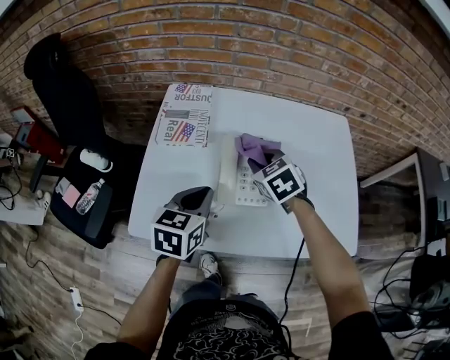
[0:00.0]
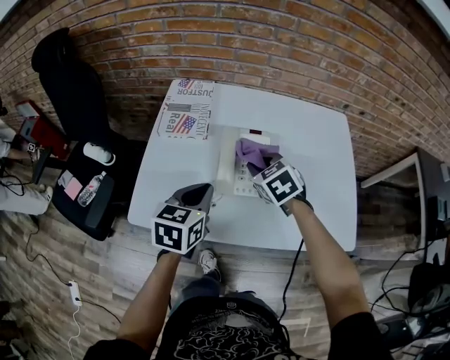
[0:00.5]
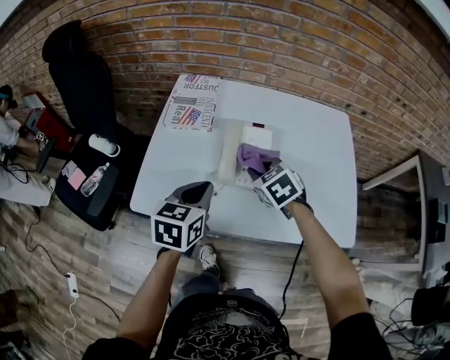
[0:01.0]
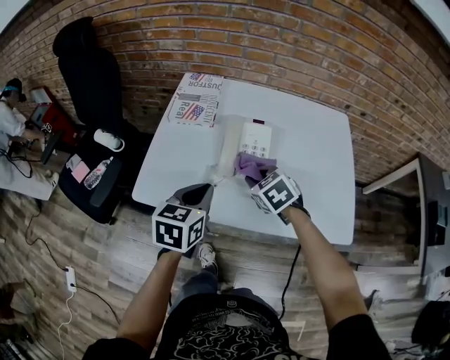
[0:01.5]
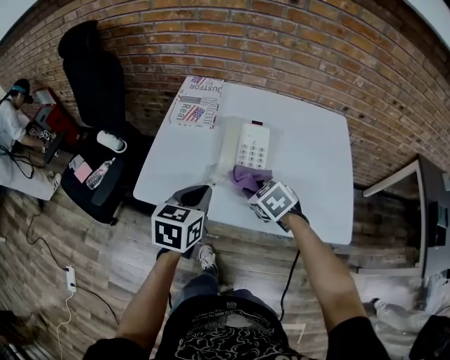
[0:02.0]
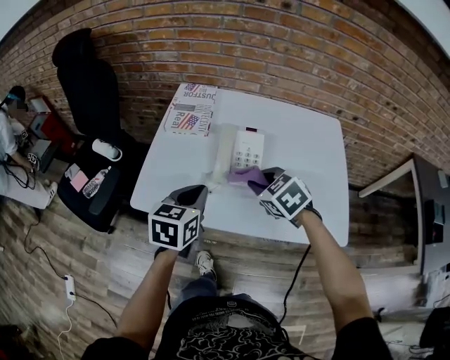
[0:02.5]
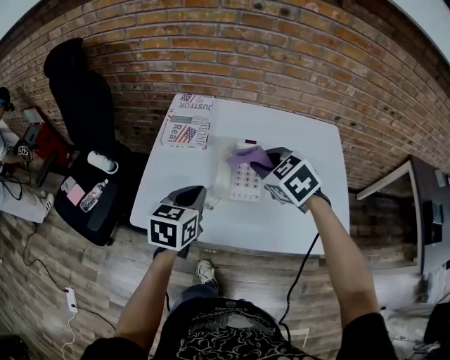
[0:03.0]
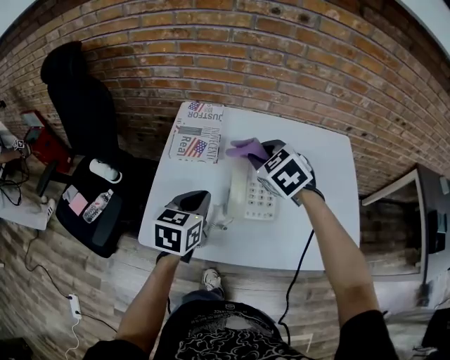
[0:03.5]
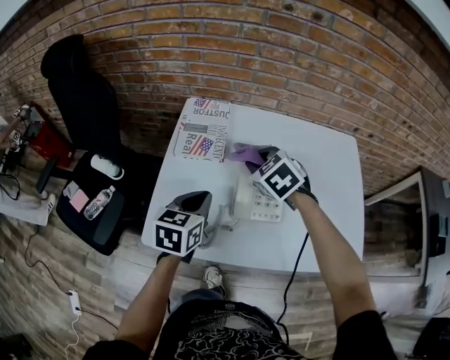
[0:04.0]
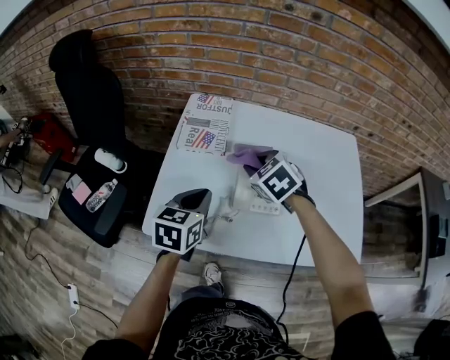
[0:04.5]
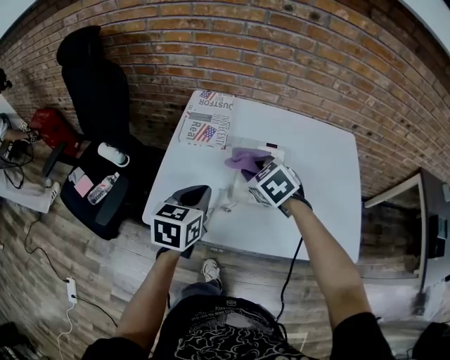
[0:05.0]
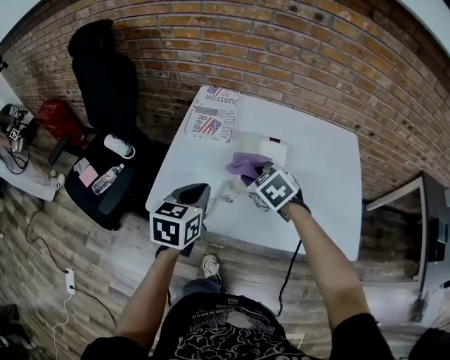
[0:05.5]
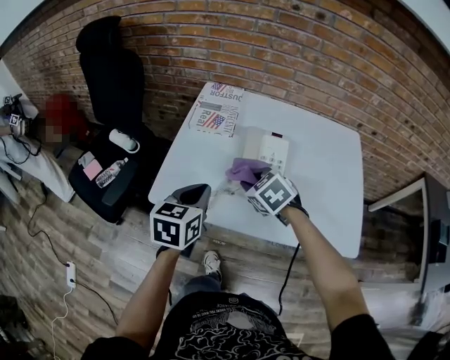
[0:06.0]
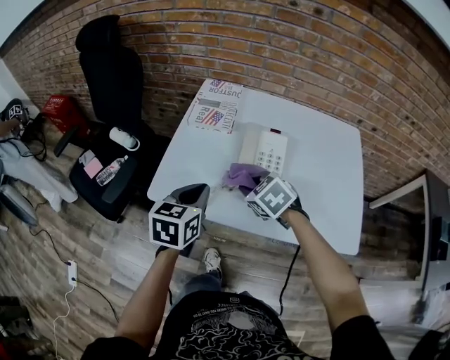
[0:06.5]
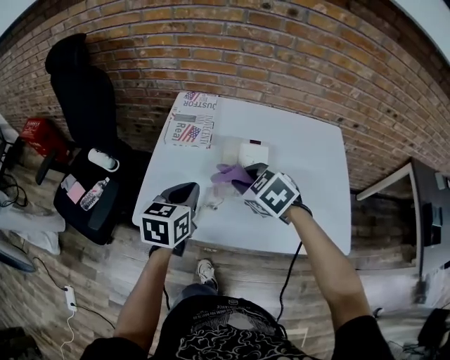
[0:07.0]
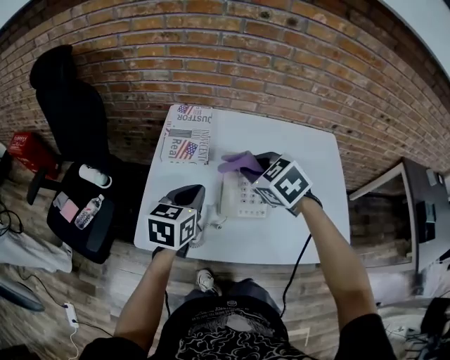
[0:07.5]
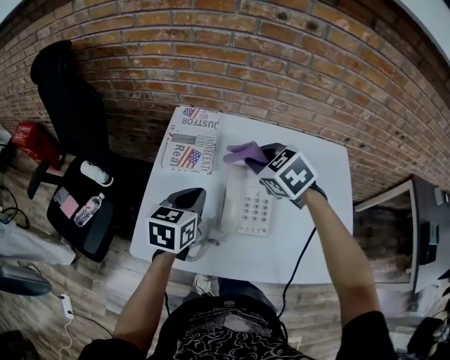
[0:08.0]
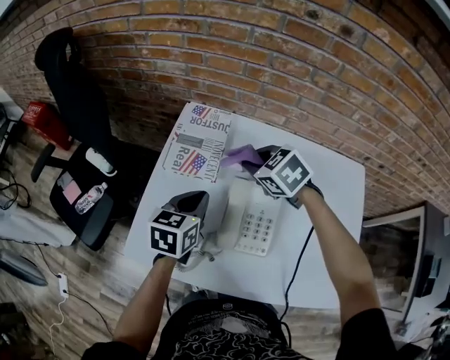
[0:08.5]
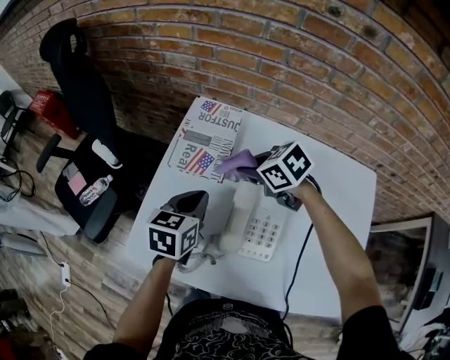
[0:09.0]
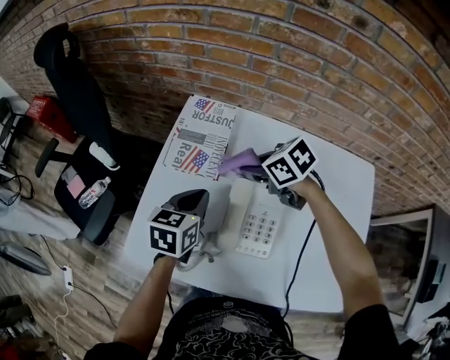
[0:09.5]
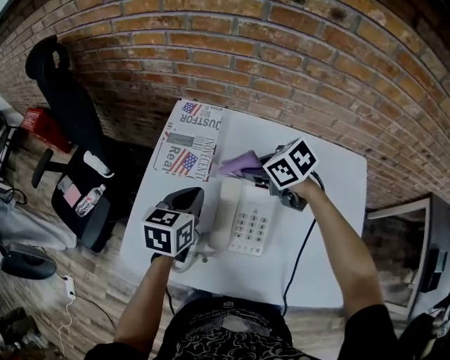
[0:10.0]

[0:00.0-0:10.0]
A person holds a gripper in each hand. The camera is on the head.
0:00.0 to 0:02.0: The right gripper is displaced backward by roughly 15 cm; the left gripper travels backward by about 10 cm.
0:02.0 to 0:04.0: The left gripper travels forward by roughly 15 cm, while the right gripper shifts approximately 20 cm forward and upward.
0:04.0 to 0:06.0: The two grippers go some 15 cm backward.
0:06.0 to 0:08.0: The left gripper travels forward by about 15 cm, while the right gripper goes some 20 cm forward and upward.
0:08.0 to 0:10.0: The left gripper shifts by roughly 5 cm, while the right gripper shifts roughly 10 cm downward, and changes its angle by some 30 degrees.

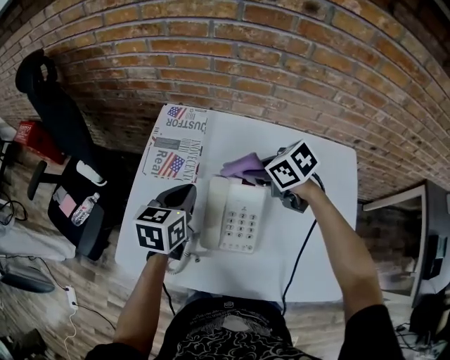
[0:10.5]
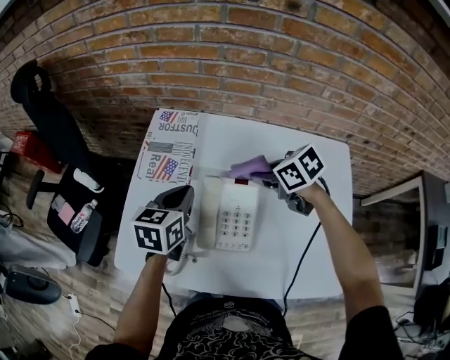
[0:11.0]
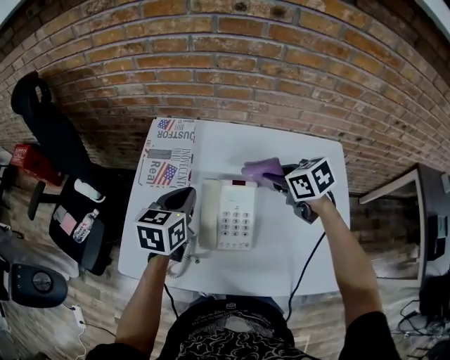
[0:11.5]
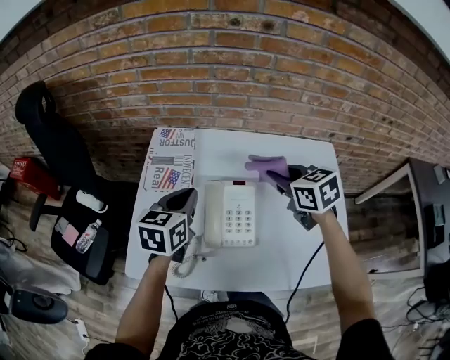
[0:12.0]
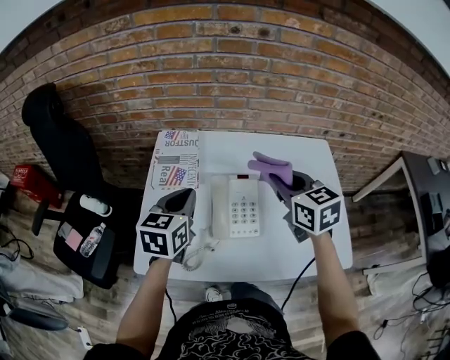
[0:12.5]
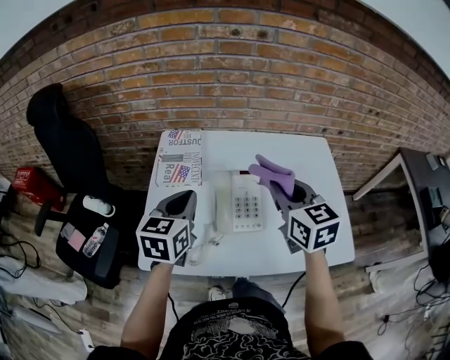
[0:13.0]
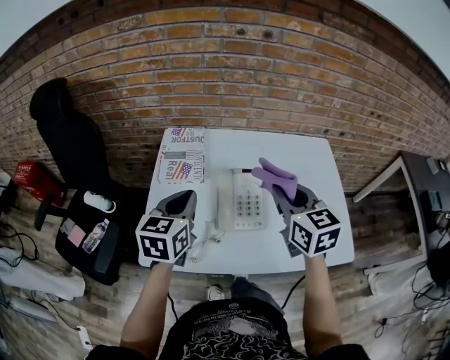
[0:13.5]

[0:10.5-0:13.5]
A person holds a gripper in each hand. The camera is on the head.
0:10.5 to 0:12.0: The left gripper goes some 5 cm upward; the right gripper travels upward, to the right and backward by roughly 15 cm, and swivels roughly 30 degrees.
0:12.0 to 0:13.5: The left gripper goes roughly 10 cm backward. The right gripper moves backward and upward, some 15 cm, and turns by some 30 degrees.

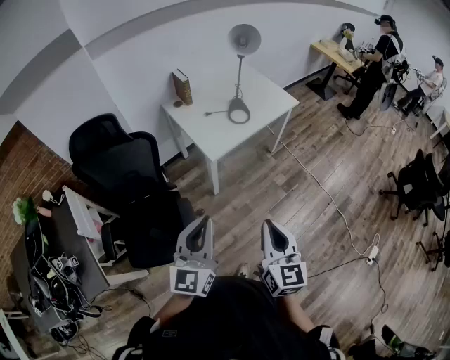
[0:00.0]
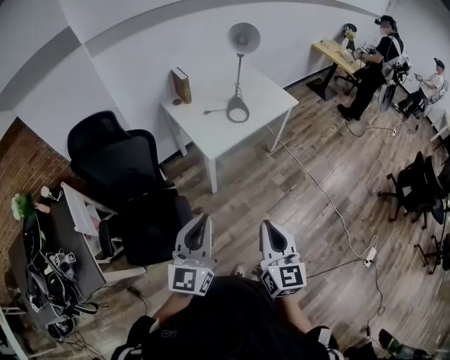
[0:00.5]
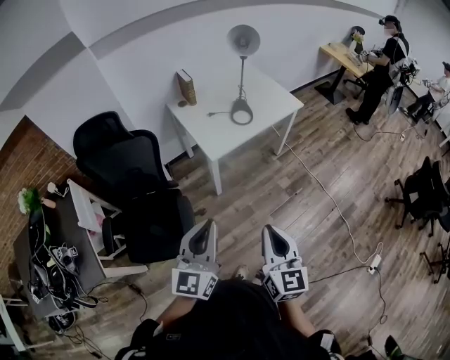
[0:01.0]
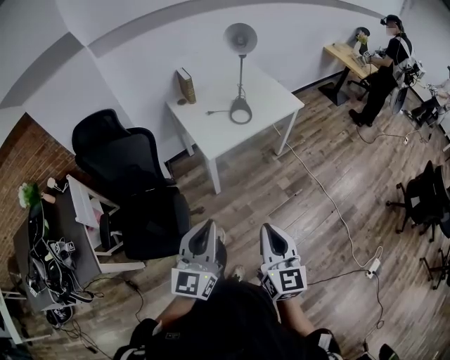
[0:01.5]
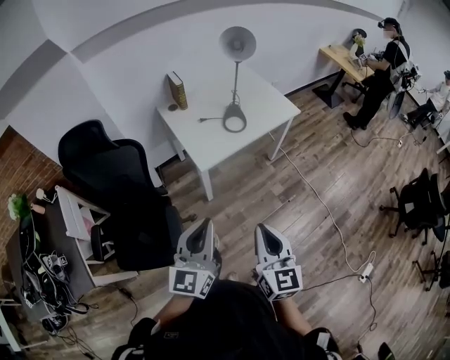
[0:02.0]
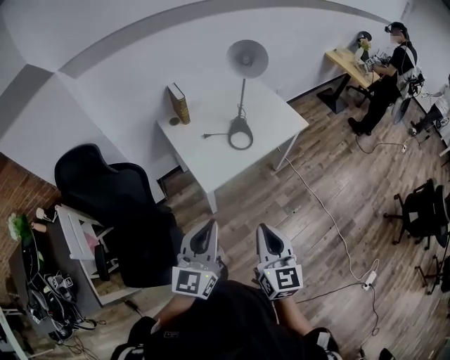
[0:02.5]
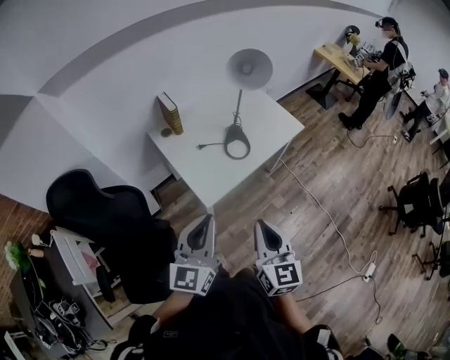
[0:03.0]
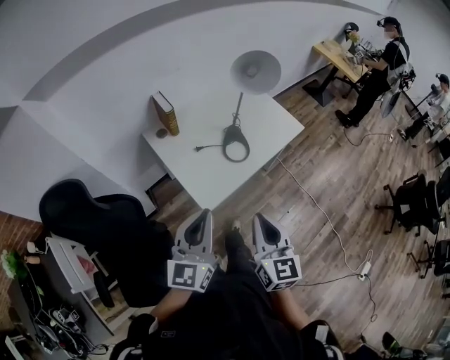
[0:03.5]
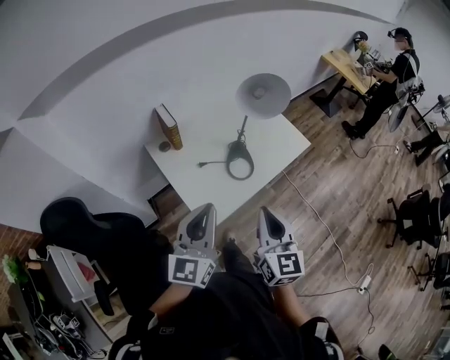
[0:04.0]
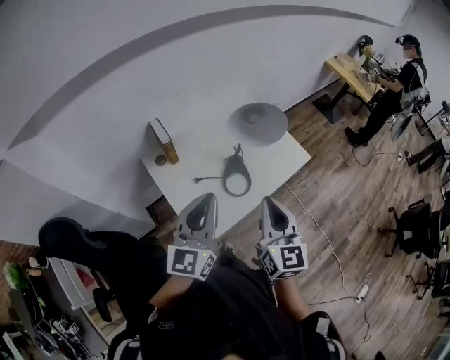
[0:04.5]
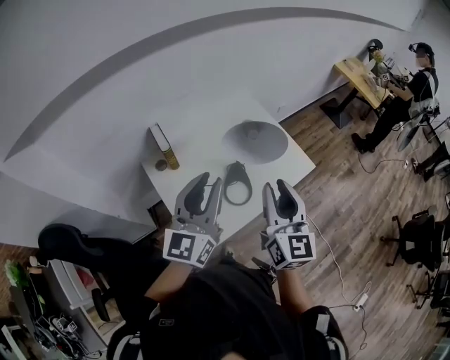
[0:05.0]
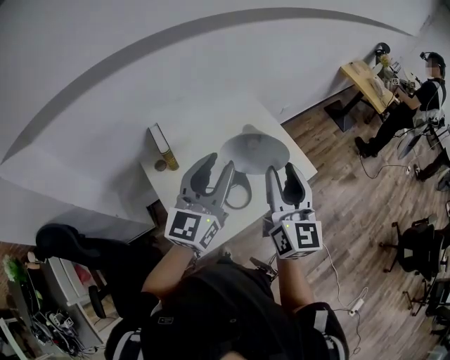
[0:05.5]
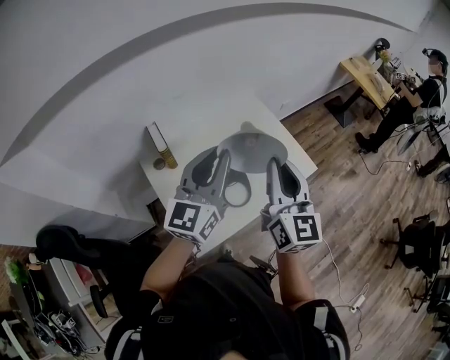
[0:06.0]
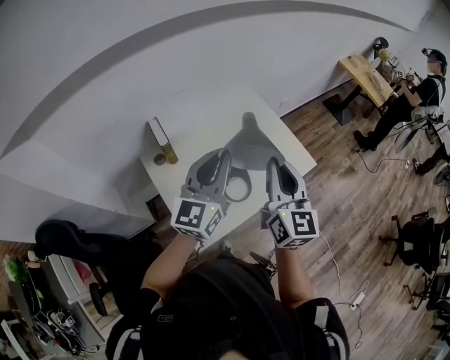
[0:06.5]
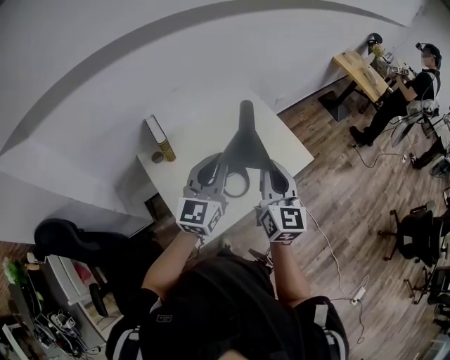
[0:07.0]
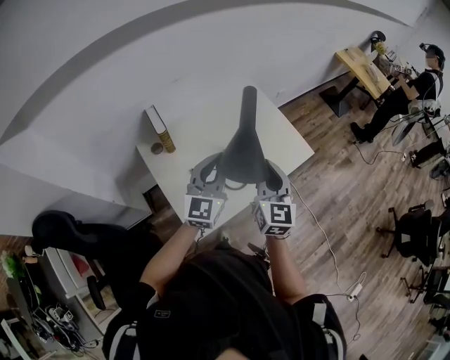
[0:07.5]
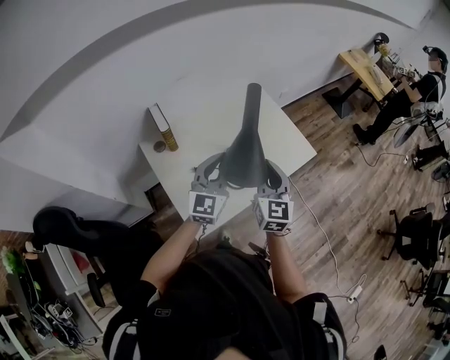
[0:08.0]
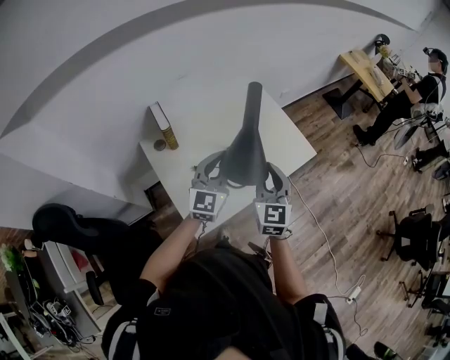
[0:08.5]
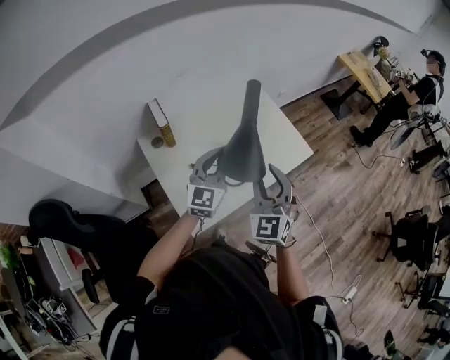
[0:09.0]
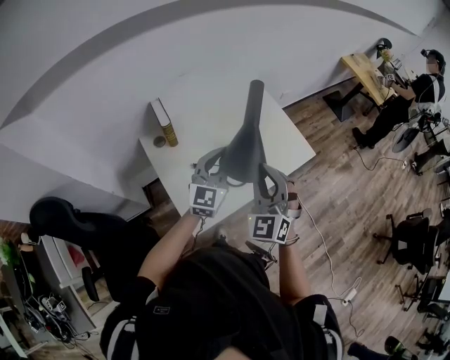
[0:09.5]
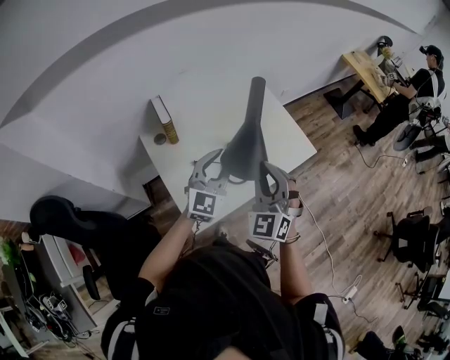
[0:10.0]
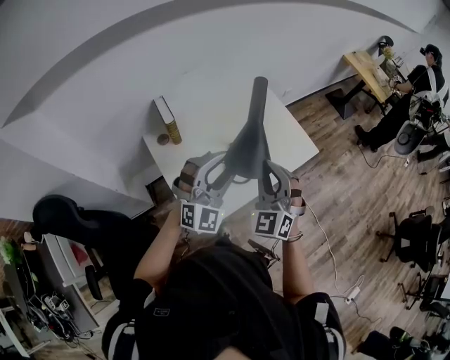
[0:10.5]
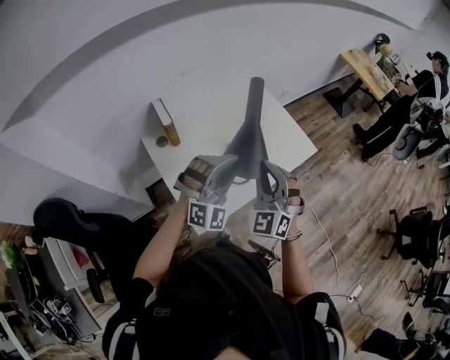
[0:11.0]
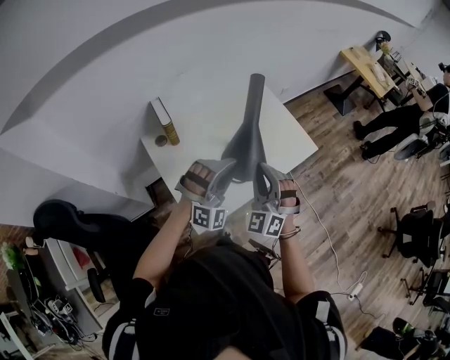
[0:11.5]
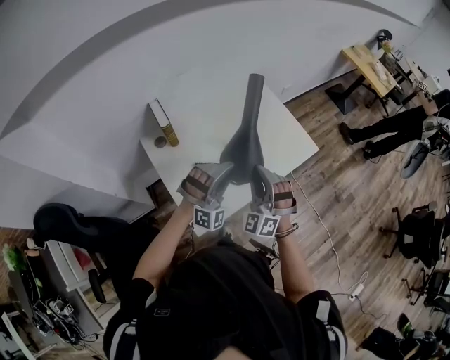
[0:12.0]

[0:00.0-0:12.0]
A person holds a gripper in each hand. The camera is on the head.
0:00.0 to 0:02.0: The right gripper is displaced forward and to the right by approximately 10 cm. The left gripper goes some 10 cm to the right and forward.
0:02.0 to 0:04.0: The grippers both shift forward by some 35 cm.
0:04.0 to 0:06.0: Both grippers travel together forward, roughly 25 cm. The right gripper opens and closes again.
0:06.0 to 0:08.0: Both grippers travel together downward, roughly 15 cm.
0:08.0 to 0:10.0: The right gripper shifts by some 5 cm, rotates around the line of its fingers by roughly 40 degrees, counterclockwise from behind, and opens and closes again. Meanwhile the left gripper opens up.
0:10.0 to 0:12.0: The left gripper ends up roughly 5 cm from where it was, and twists roughly 60 degrees clockwise, seen from behind; the right gripper shifts roughly 10 cm downward.

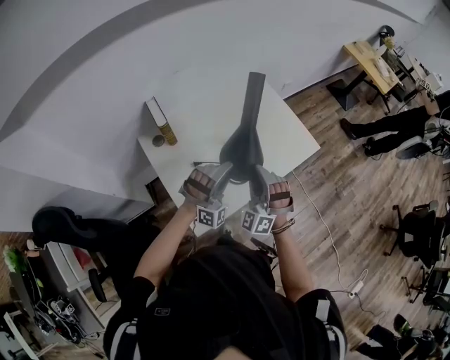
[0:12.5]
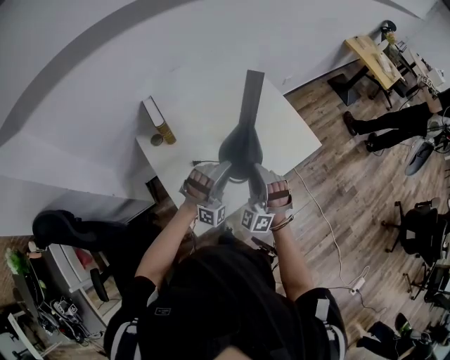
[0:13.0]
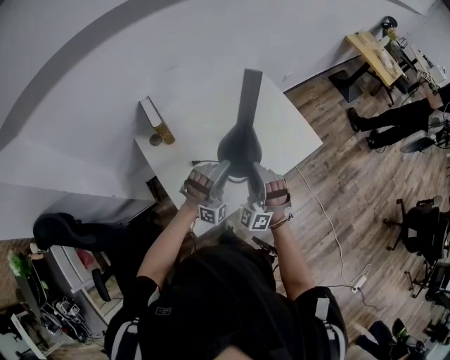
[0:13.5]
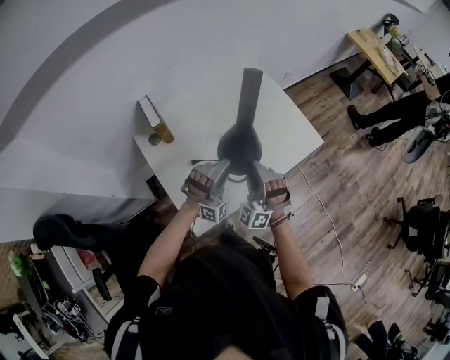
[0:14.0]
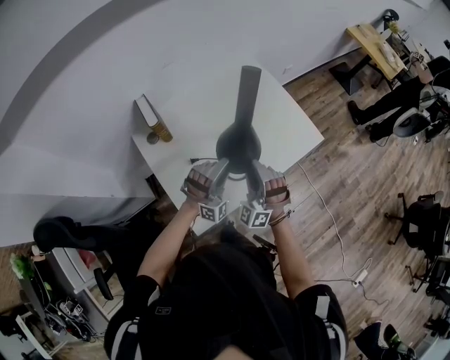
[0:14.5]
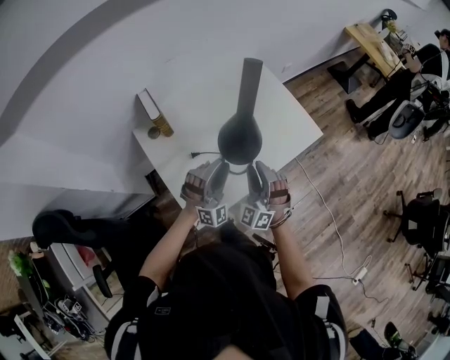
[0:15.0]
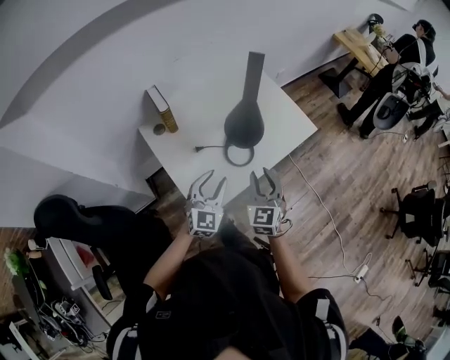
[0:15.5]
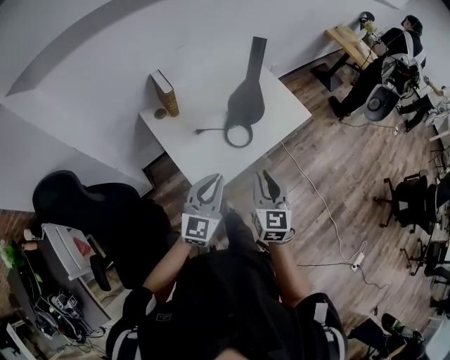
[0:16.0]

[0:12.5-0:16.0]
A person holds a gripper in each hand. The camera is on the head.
0:12.5 to 0:14.5: The right gripper changes place by some 5 cm. Meanwhile the left gripper ends up approximately 5 cm from where it was.
0:14.5 to 0:16.0: The two grippers go some 25 cm backward. The right gripper twists about 70 degrees clockwise, seen from behind, while the left gripper rotates around the line of its fingers by some 80 degrees, counterclockwise from behind, and closes its fingers.
